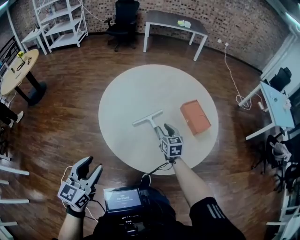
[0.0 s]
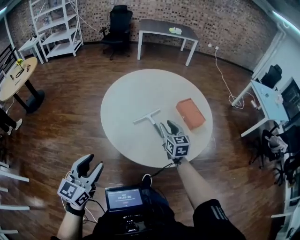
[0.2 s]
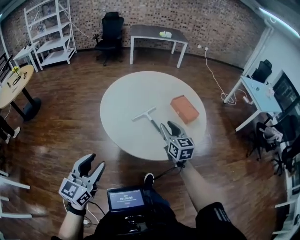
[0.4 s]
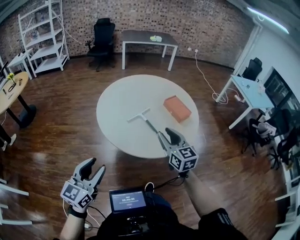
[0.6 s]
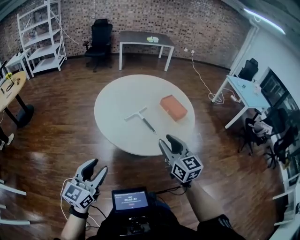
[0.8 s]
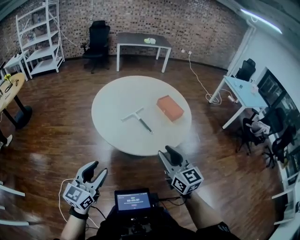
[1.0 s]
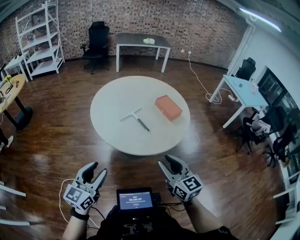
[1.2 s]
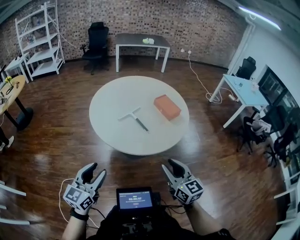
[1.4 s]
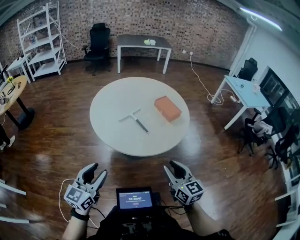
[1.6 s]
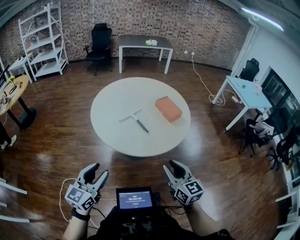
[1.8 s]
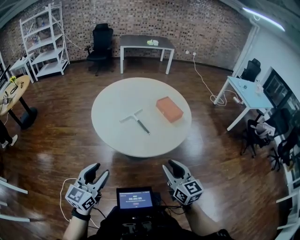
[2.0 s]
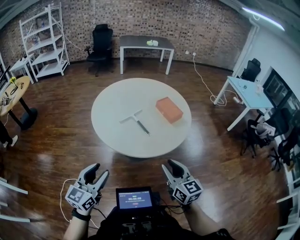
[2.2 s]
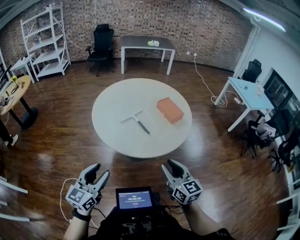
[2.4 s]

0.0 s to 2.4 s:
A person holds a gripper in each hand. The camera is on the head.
0.0 to 1.2 s: The left gripper goes some 20 cm backward. Meanwhile the right gripper goes about 50 cm backward and upward.
1.2 to 2.4 s: The right gripper ends up roughly 5 cm from where it was.

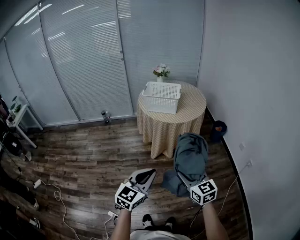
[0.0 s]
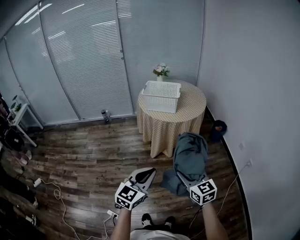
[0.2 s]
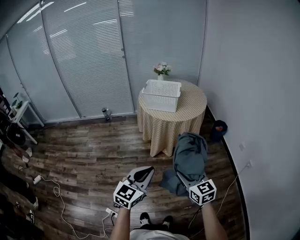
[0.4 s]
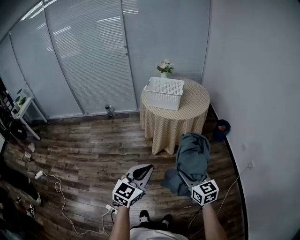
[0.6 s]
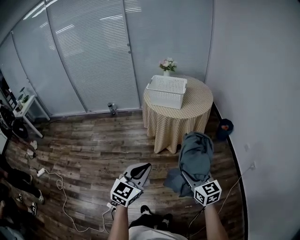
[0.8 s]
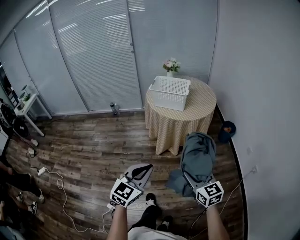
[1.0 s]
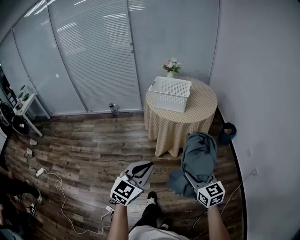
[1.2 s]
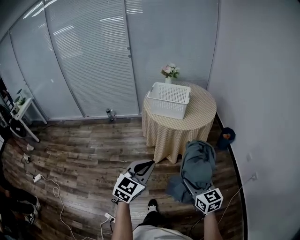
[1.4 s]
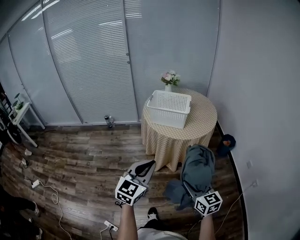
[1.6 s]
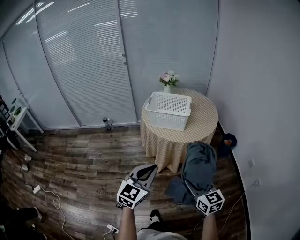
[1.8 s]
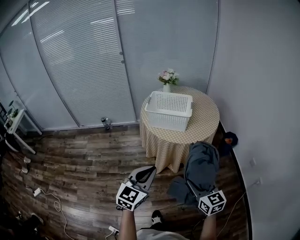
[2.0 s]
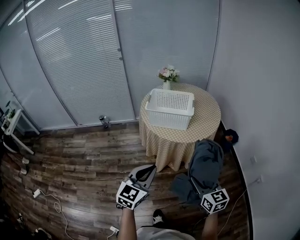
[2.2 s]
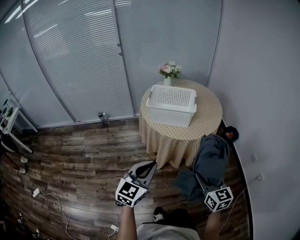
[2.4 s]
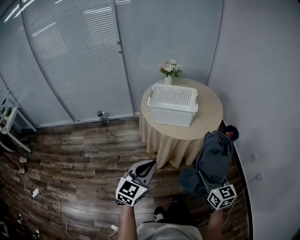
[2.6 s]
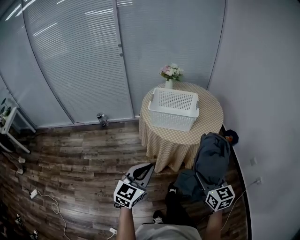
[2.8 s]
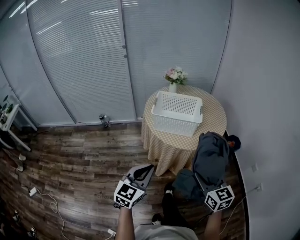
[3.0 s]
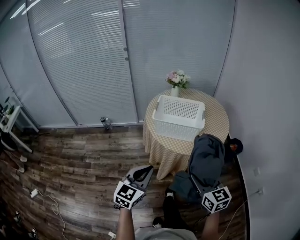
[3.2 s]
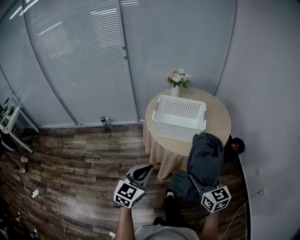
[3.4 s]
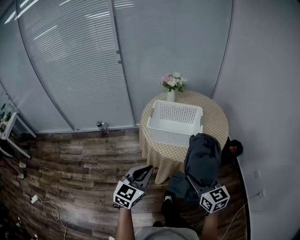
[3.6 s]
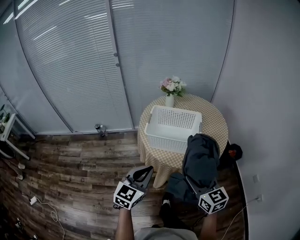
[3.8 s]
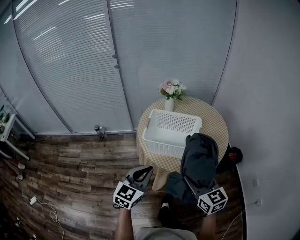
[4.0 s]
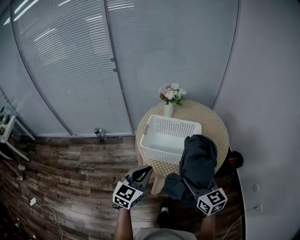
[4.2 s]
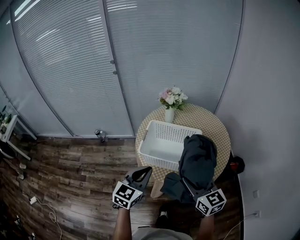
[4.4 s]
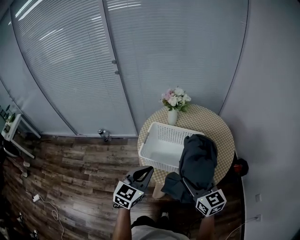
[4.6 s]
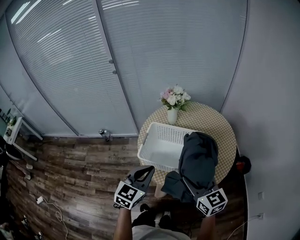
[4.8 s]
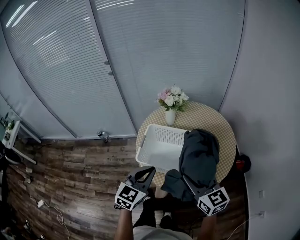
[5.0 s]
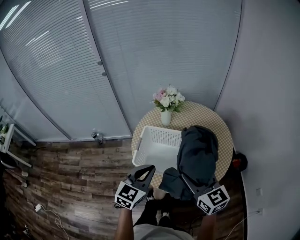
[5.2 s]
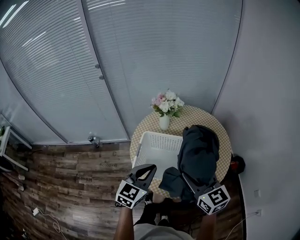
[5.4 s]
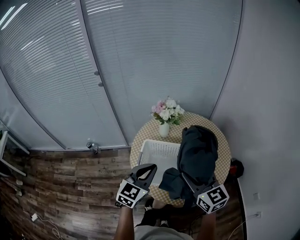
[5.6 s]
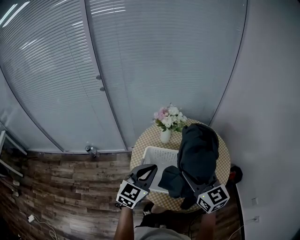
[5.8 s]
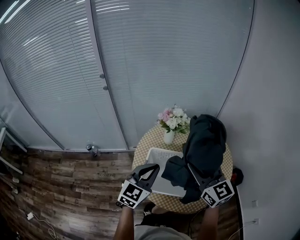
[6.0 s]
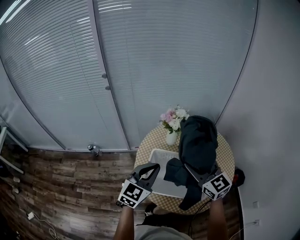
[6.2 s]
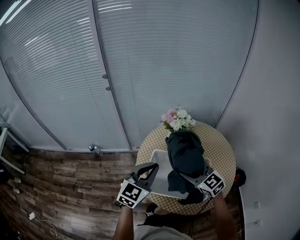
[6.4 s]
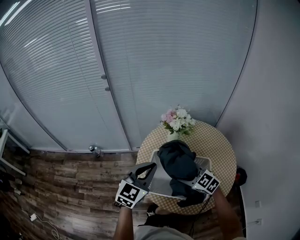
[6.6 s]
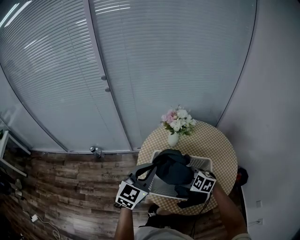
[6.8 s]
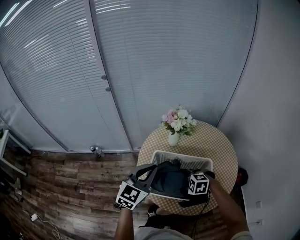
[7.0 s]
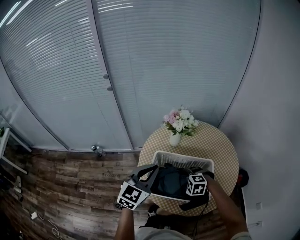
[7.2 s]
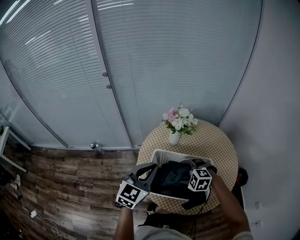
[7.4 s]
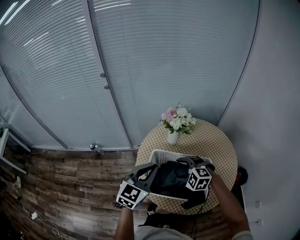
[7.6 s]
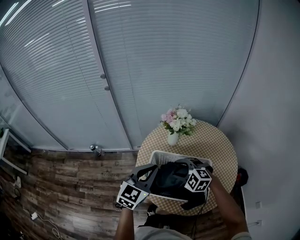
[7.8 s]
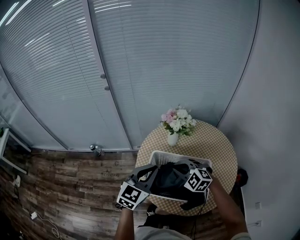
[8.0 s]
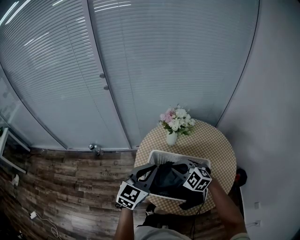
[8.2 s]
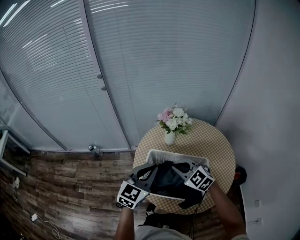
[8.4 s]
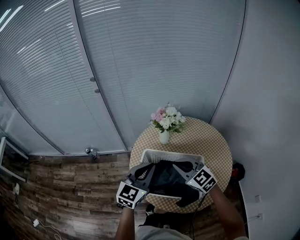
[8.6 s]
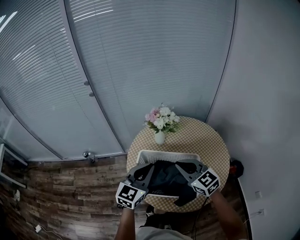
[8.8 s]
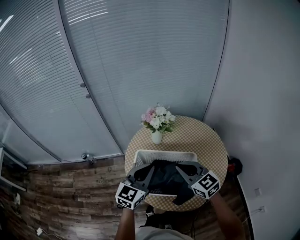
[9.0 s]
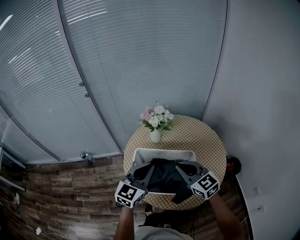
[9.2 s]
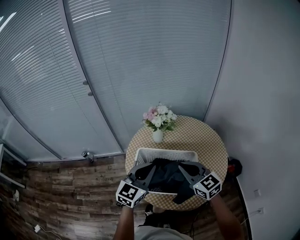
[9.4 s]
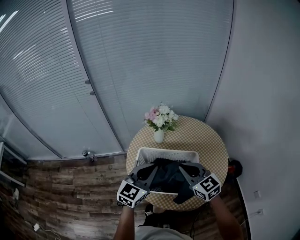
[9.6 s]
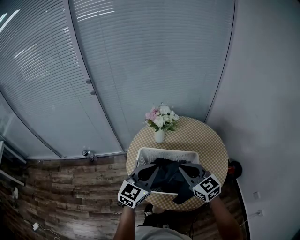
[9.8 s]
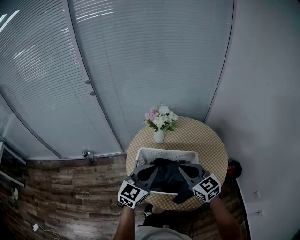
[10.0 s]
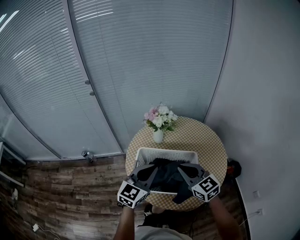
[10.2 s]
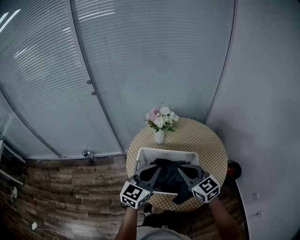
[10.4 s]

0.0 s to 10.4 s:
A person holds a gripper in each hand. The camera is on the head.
0.0 to 1.4 s: The right gripper heads forward, covering roughly 10 cm. The left gripper moves forward, roughly 15 cm.
1.4 to 3.0 s: The right gripper moves forward, approximately 25 cm. The left gripper is displaced forward and to the left by roughly 25 cm.
3.0 to 4.4 s: The two grippers go approximately 25 cm forward.
4.4 to 6.0 s: The right gripper shifts some 25 cm forward and upward. The left gripper heads forward, covering about 20 cm.
6.0 to 7.4 s: The right gripper goes roughly 25 cm downward, points its fingers roughly 60 degrees further downward, and opens up.
7.4 to 9.0 s: The left gripper heads to the right, covering about 5 cm; the right gripper goes about 15 cm upward and to the right, angles its fingers upward, by some 40 degrees, and closes its fingers.
9.0 to 10.4 s: There are only small adjustments of the grippers.

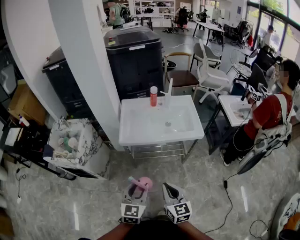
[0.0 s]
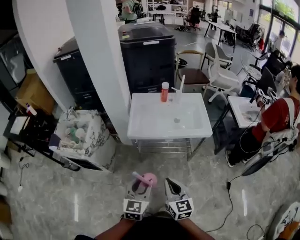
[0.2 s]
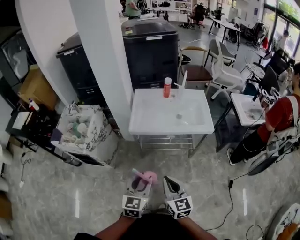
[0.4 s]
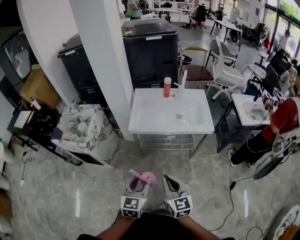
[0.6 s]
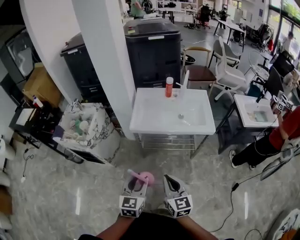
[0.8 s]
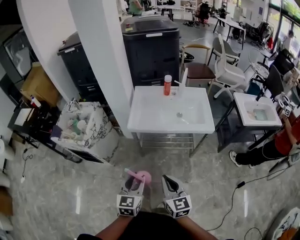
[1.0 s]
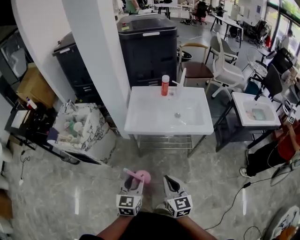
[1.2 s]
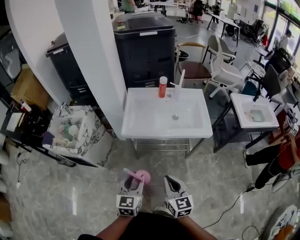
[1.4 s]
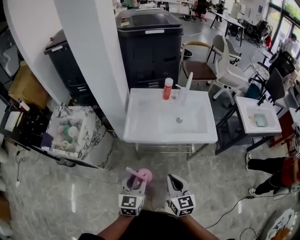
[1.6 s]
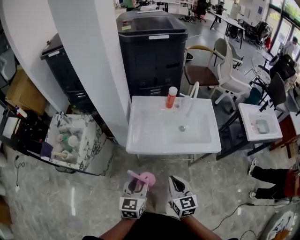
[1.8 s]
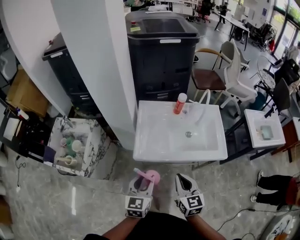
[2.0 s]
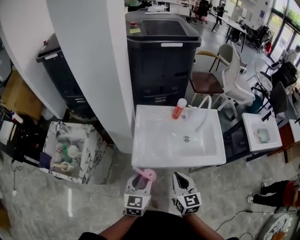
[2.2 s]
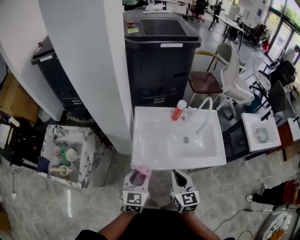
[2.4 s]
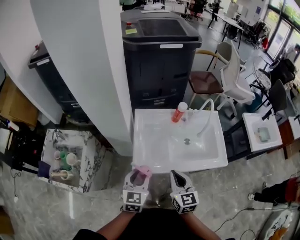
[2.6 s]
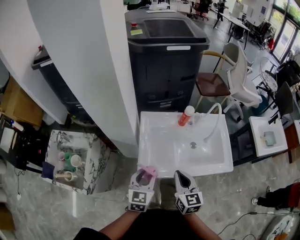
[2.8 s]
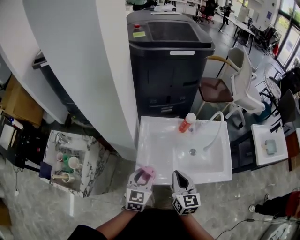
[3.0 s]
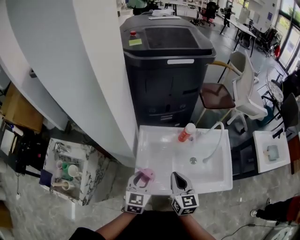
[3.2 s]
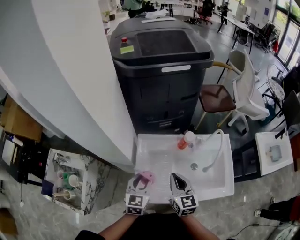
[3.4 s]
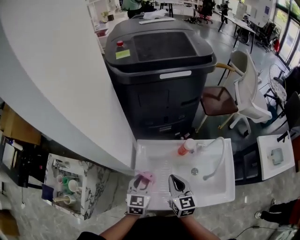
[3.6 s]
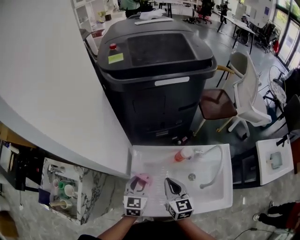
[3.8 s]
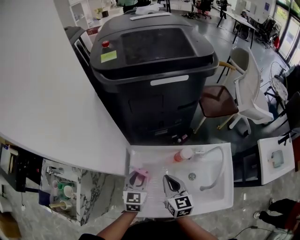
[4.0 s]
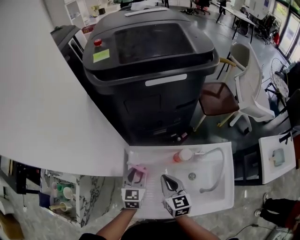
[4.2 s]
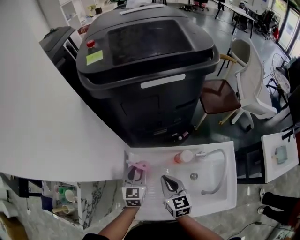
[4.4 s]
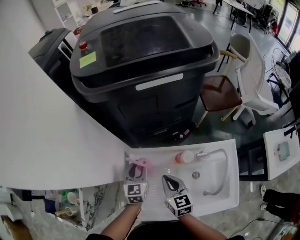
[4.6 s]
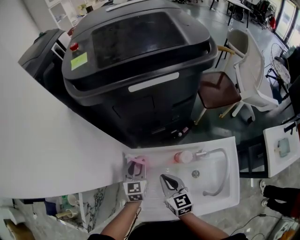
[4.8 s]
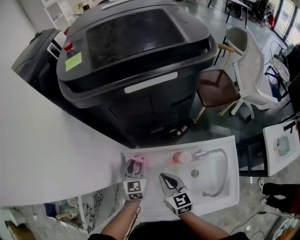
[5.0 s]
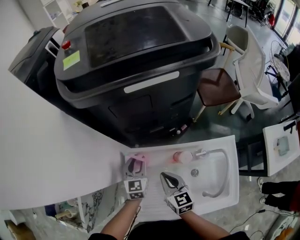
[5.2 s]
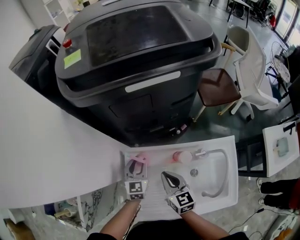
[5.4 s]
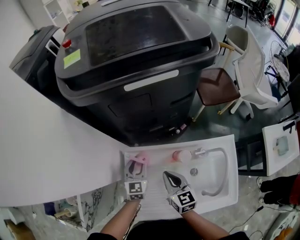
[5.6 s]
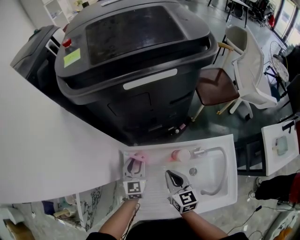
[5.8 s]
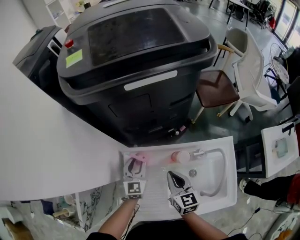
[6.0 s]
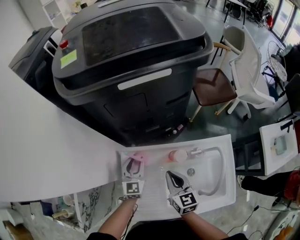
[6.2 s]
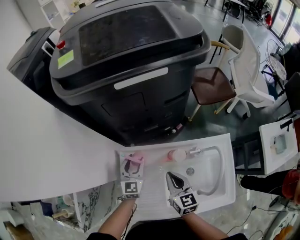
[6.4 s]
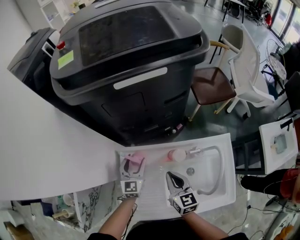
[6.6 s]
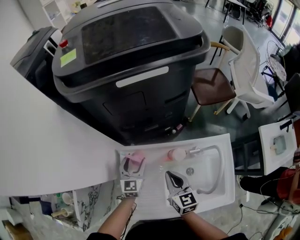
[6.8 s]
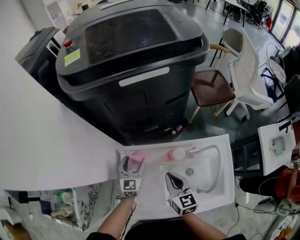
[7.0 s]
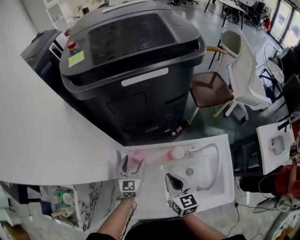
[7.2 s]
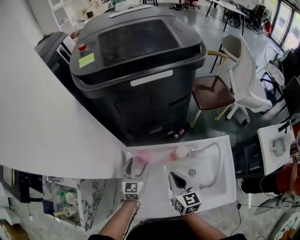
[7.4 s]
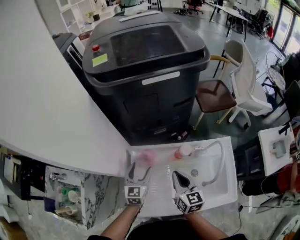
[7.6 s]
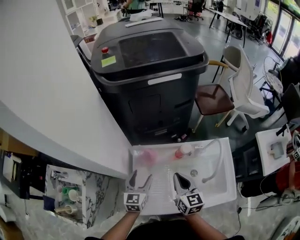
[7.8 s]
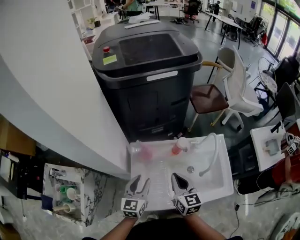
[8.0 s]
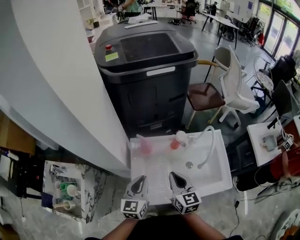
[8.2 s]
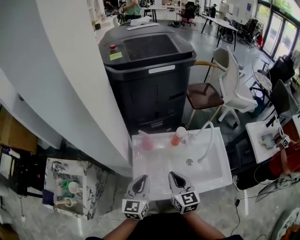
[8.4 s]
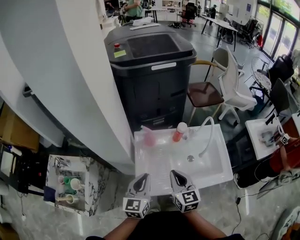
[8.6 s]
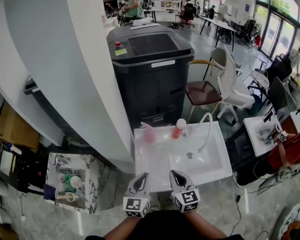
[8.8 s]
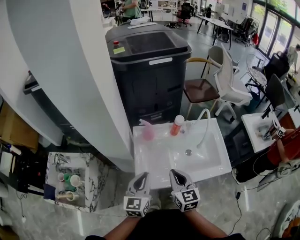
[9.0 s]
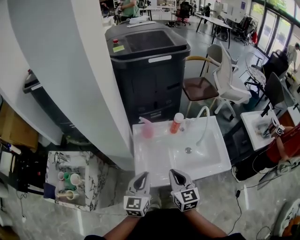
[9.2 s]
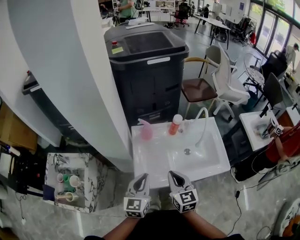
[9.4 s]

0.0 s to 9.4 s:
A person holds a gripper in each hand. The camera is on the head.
0.0 to 1.6 s: Both grippers move forward, approximately 15 cm.
1.6 to 3.2 s: Both grippers move forward, some 40 cm.
3.2 to 4.8 s: Both grippers travel together forward, roughly 25 cm.
4.8 to 6.2 s: The right gripper shifts roughly 5 cm to the right.
6.2 to 7.8 s: The two grippers go approximately 15 cm backward and upward. The left gripper opens up.
7.8 to 9.4 s: The right gripper moves backward, about 20 cm; the left gripper goes roughly 25 cm backward and upward, and closes its fingers.

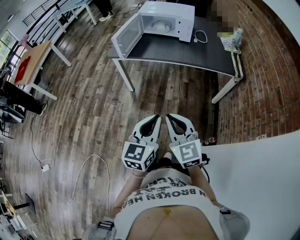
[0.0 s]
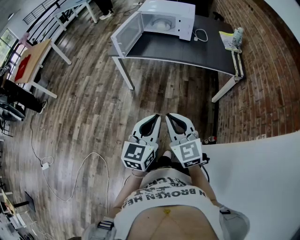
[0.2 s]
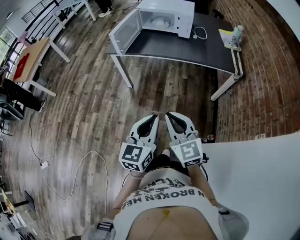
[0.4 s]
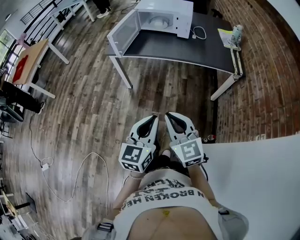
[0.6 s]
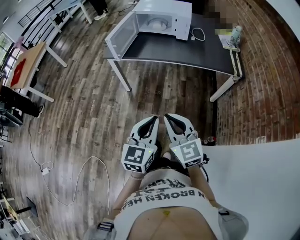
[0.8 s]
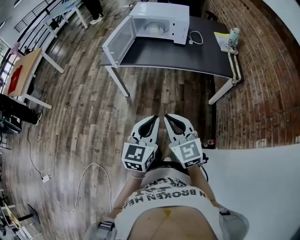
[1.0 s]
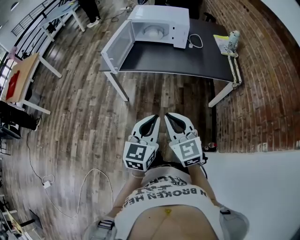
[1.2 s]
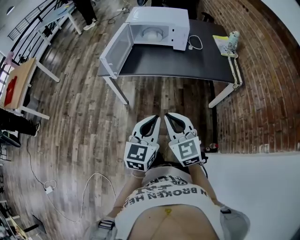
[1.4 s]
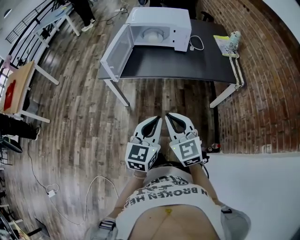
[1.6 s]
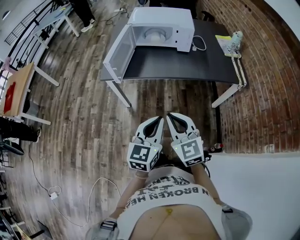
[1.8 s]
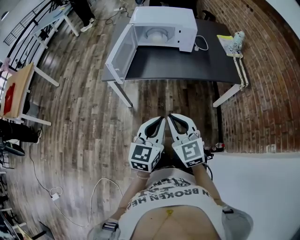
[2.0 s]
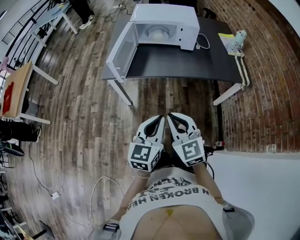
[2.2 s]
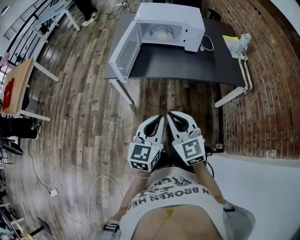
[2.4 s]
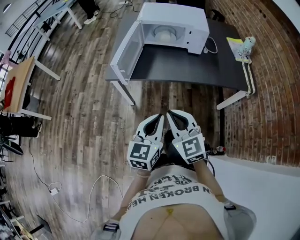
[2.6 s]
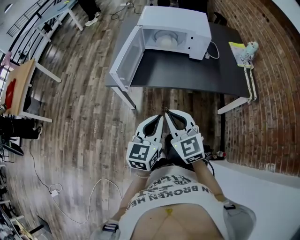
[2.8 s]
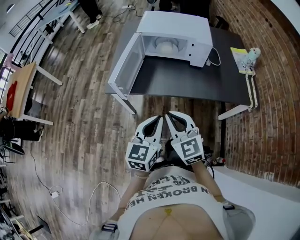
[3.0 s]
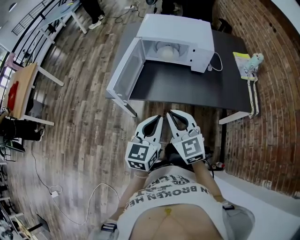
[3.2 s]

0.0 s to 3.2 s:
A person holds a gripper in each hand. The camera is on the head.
0.0 to 1.6 s: The grippers both shift forward by about 20 cm.
1.6 to 3.2 s: Both grippers travel together forward, some 25 cm.
